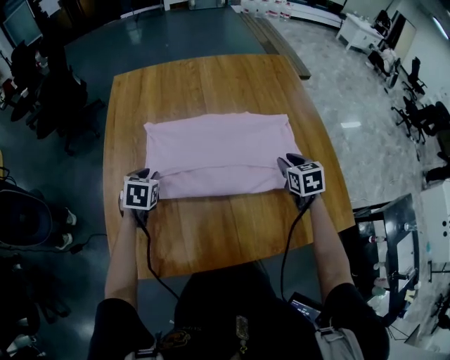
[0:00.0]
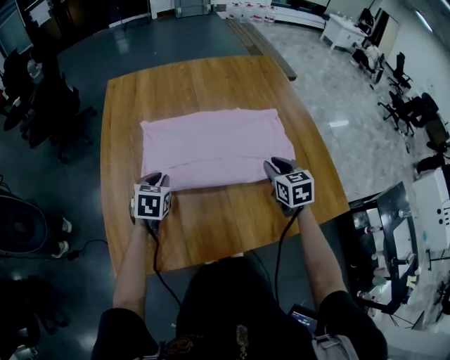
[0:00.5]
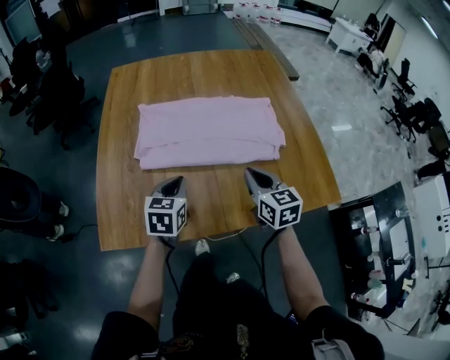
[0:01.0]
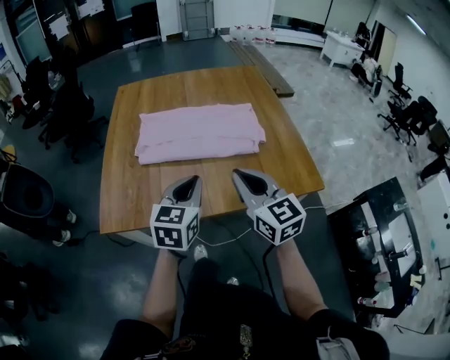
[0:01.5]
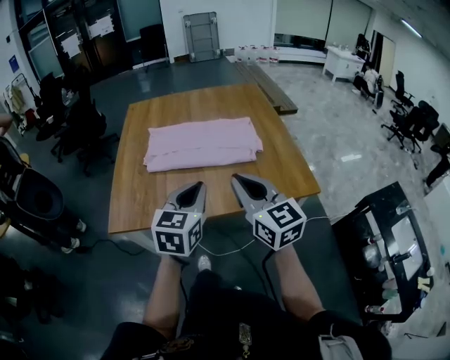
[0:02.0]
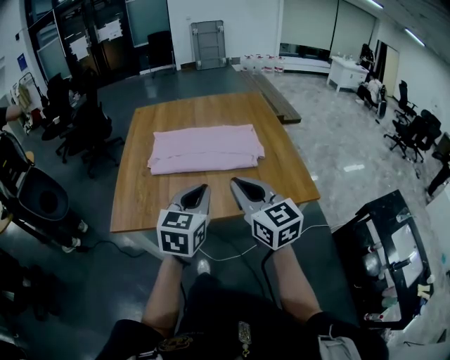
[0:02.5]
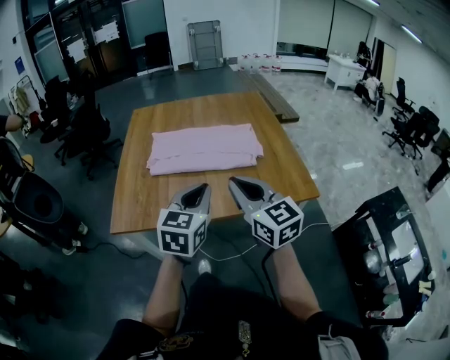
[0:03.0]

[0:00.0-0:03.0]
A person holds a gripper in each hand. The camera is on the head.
0:00.0 to 0:01.5: The right gripper goes roughly 40 cm backward and upward, points its fingers some 40 degrees further upward, and closes. Meanwhile the left gripper shifts approximately 40 cm backward, to the right and upward, tilts its fingers approximately 30 degrees upward, and closes up.
0:01.5 to 0:03.0: Both grippers travel together backward and upward, about 10 cm.

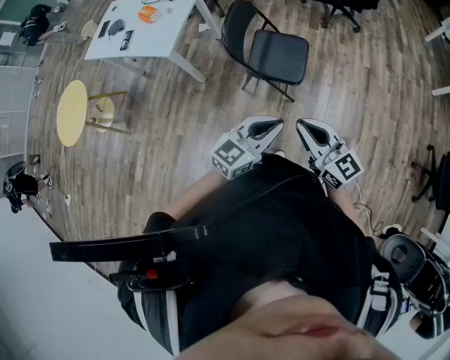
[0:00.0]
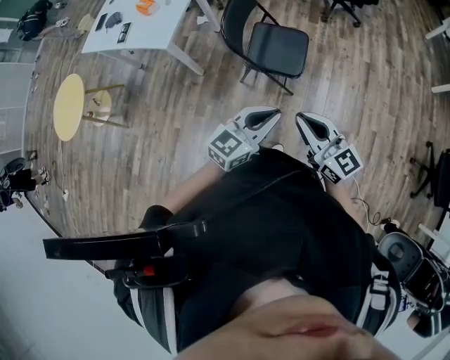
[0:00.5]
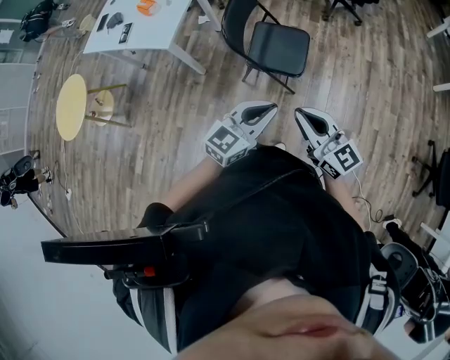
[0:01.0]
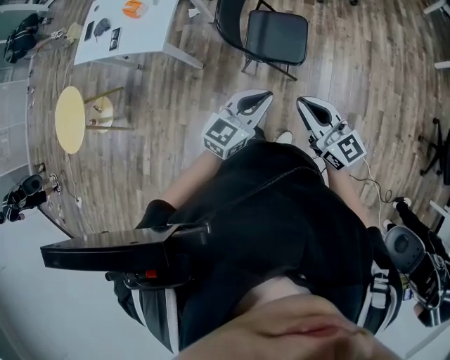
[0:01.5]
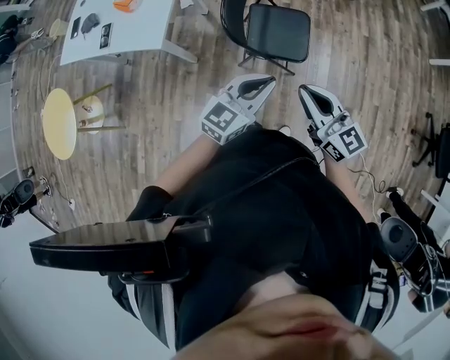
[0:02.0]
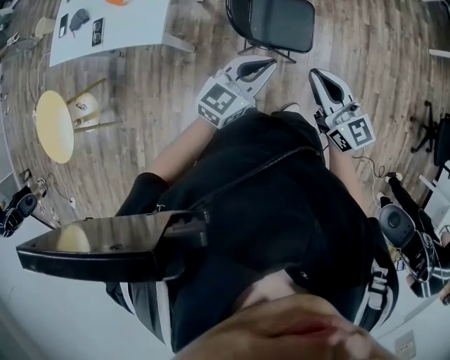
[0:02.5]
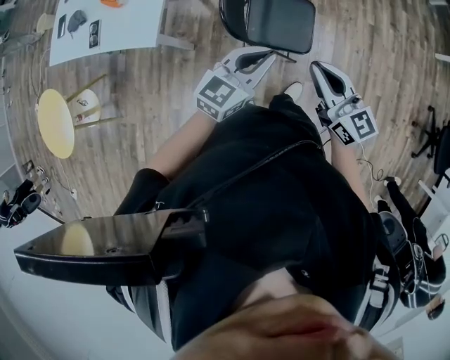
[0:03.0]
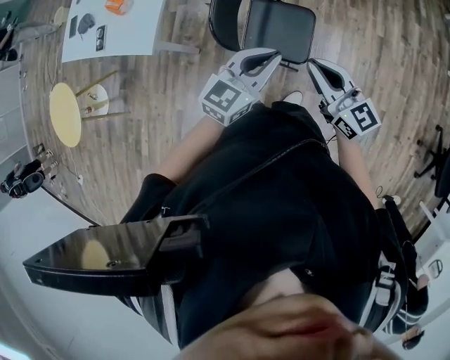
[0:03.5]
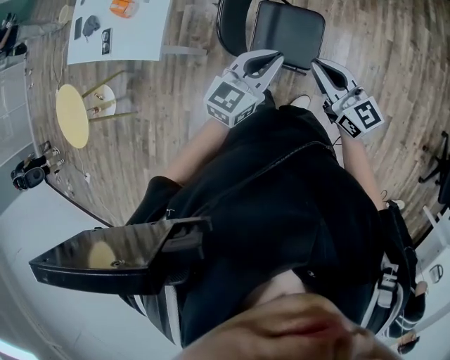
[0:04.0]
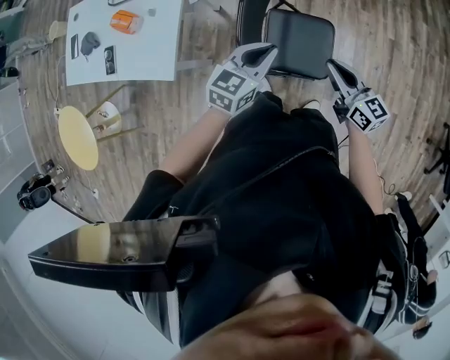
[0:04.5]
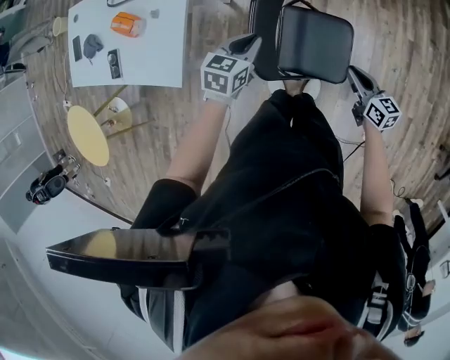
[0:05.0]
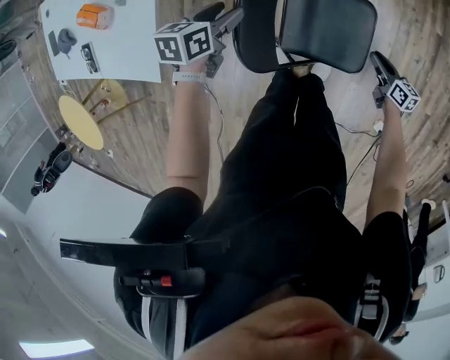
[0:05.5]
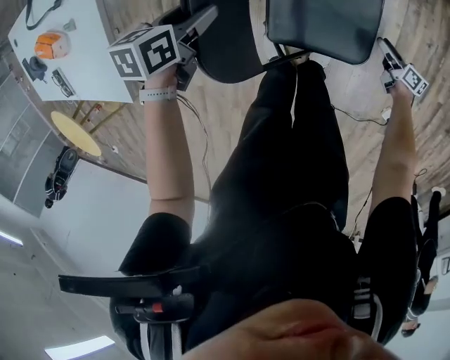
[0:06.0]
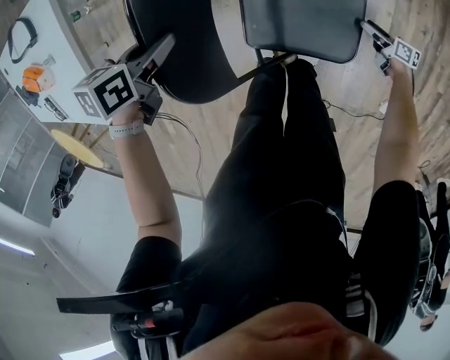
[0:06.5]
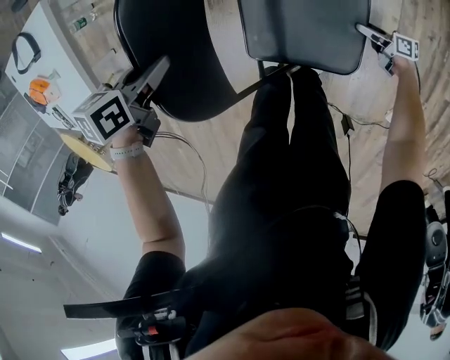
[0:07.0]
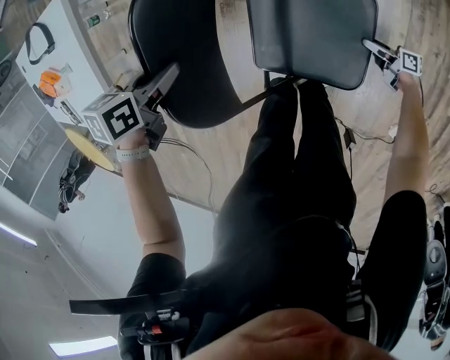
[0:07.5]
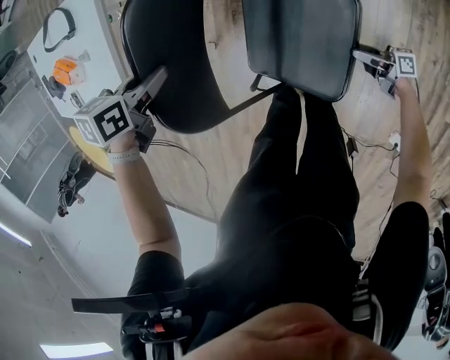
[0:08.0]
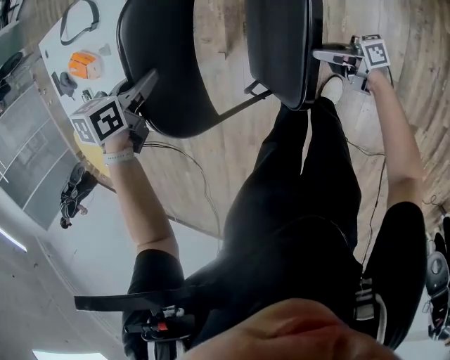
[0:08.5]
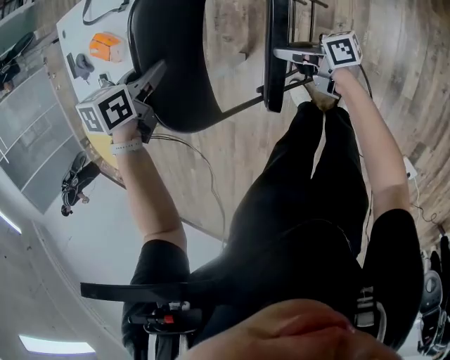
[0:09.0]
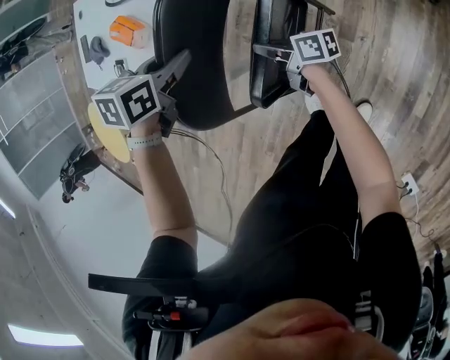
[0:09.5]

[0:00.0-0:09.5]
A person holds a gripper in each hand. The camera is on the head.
0:00.0 to 0:02.0: The grippers both shift forward and to the left by about 20 cm.
0:02.0 to 0:04.0: Both grippers travel together forward, approximately 20 cm.
0:04.0 to 0:05.5: The right gripper shifts some 50 cm downward, and turns by approximately 40 degrees. Meanwhile the left gripper is displaced downward, forward and to the left by some 40 cm, tips its fingers downward by about 30 degrees, and opens.
0:05.5 to 0:07.5: The right gripper shifts about 25 cm downward, rotates roughly 40 degrees, and opens; the left gripper heads downward, covering roughly 10 cm, rotates about 20 degrees, and closes.
0:07.5 to 0:09.5: The left gripper moves about 25 cm. Meanwhile the right gripper changes place by approximately 60 cm, rotates some 30 degrees, and closes its fingers.

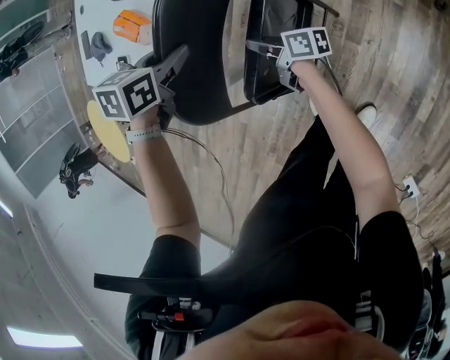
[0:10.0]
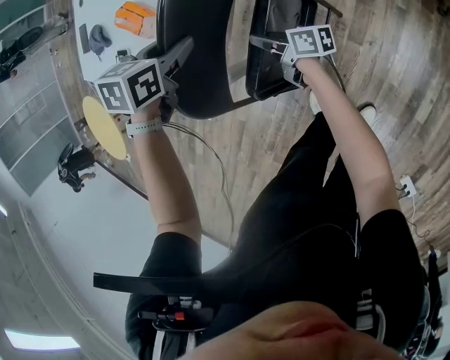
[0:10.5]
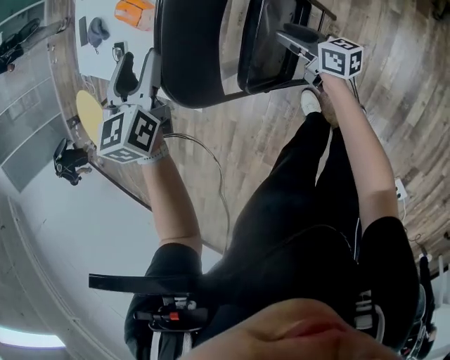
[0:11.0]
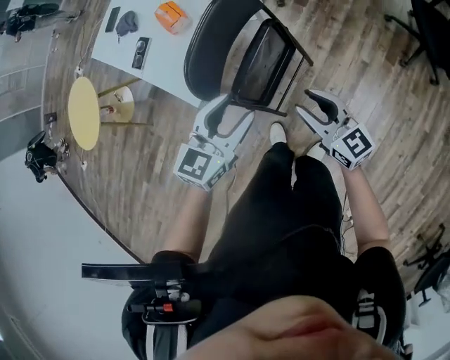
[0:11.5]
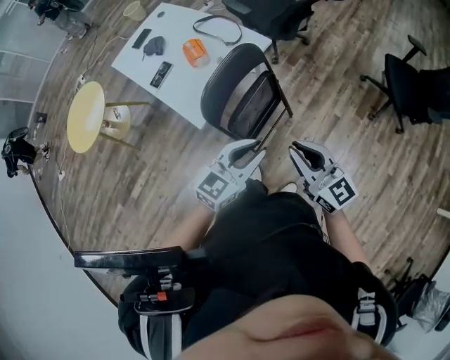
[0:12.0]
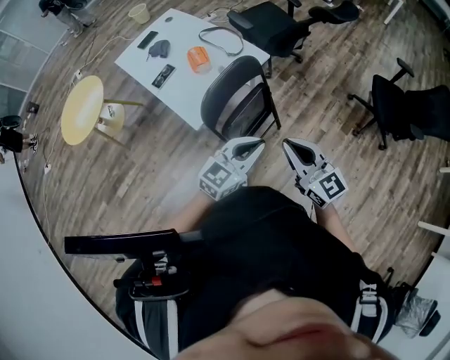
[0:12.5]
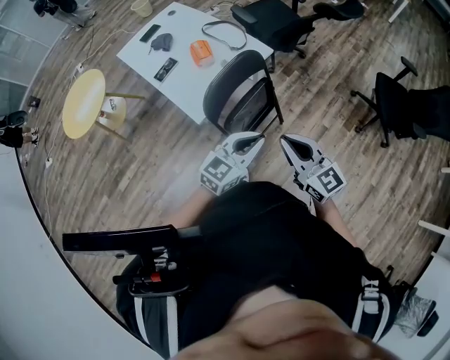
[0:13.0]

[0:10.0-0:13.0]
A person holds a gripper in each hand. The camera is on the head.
0:10.0 to 0:11.5: The left gripper is displaced backward and upward by about 30 cm, points its fingers approximately 40 degrees further upward, and opens. The right gripper heads upward, backward and to the right, covering about 35 cm, rotates around the line of its fingers by roughly 60 degrees, counterclockwise from behind, and opens.
0:11.5 to 0:13.0: The left gripper is displaced upward and backward by about 15 cm, and closes, while the right gripper goes some 25 cm upward and backward, and closes its fingers.

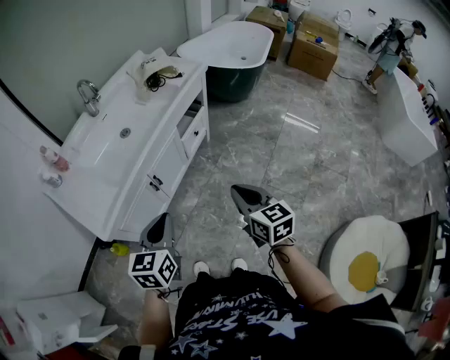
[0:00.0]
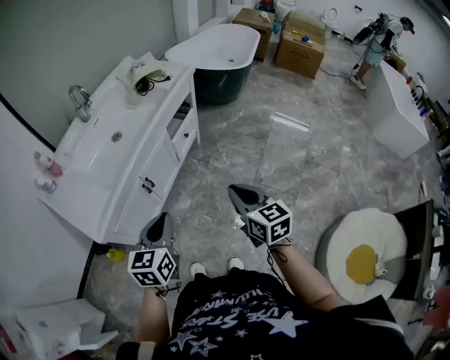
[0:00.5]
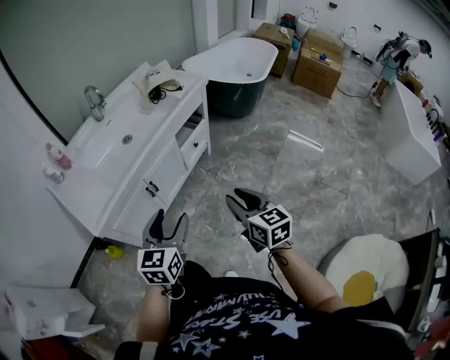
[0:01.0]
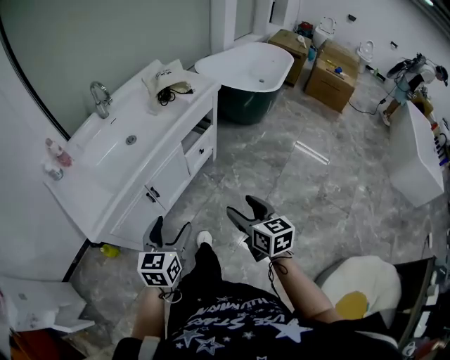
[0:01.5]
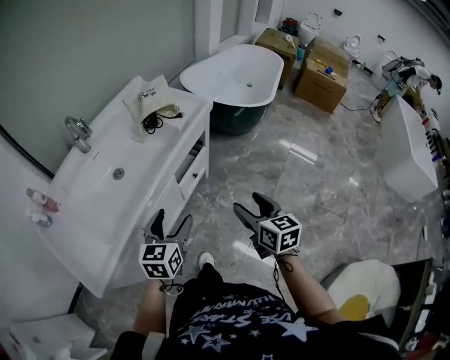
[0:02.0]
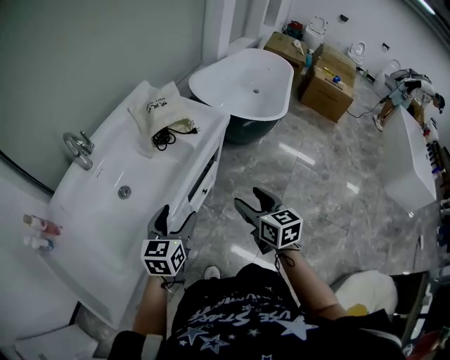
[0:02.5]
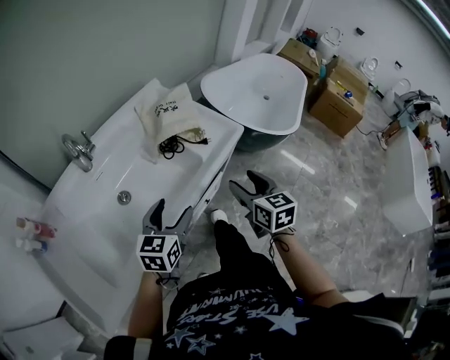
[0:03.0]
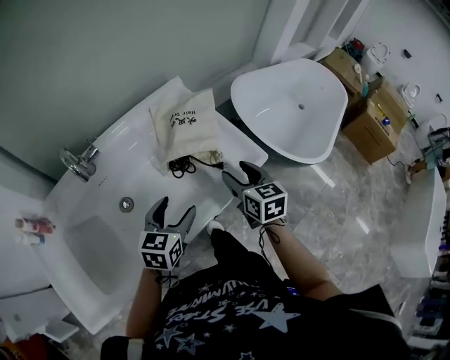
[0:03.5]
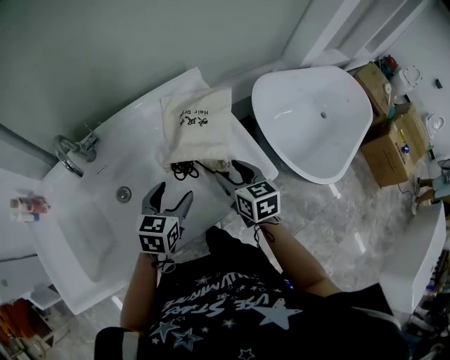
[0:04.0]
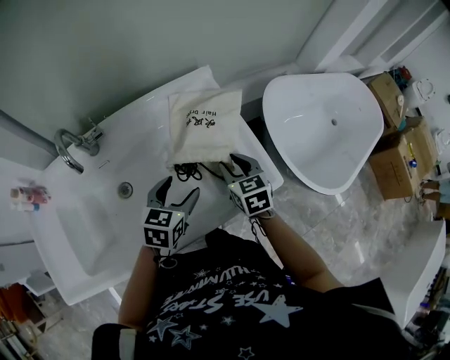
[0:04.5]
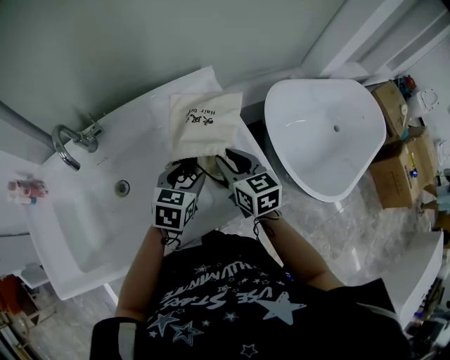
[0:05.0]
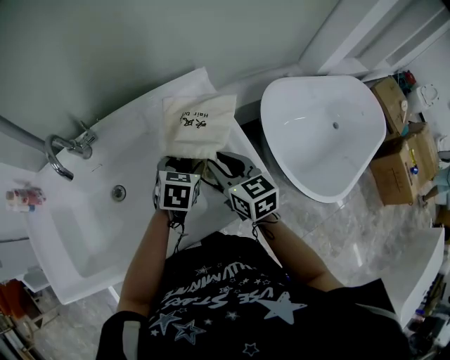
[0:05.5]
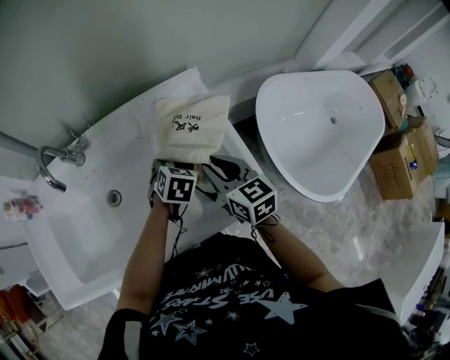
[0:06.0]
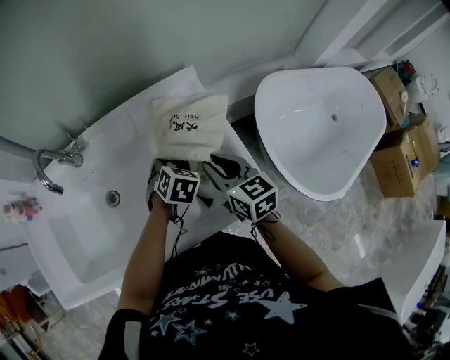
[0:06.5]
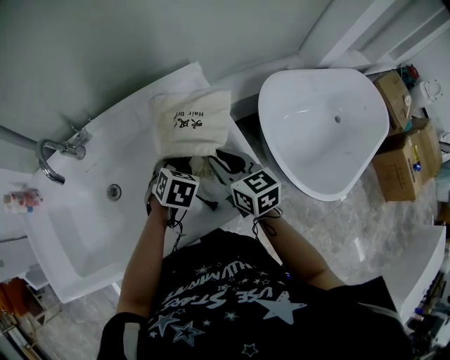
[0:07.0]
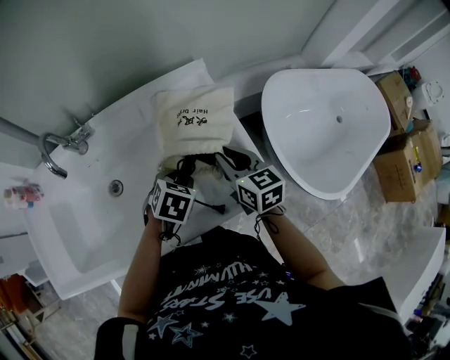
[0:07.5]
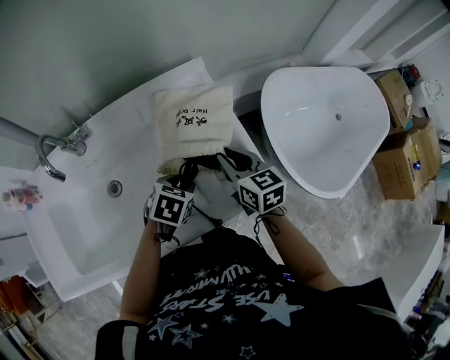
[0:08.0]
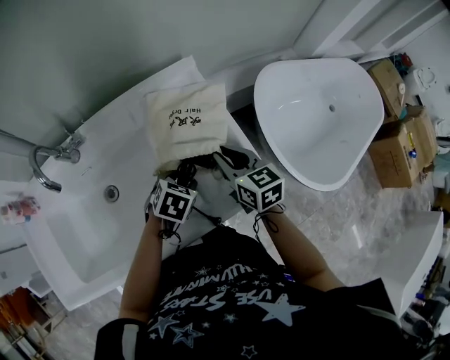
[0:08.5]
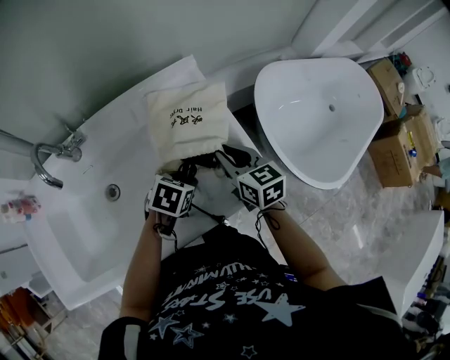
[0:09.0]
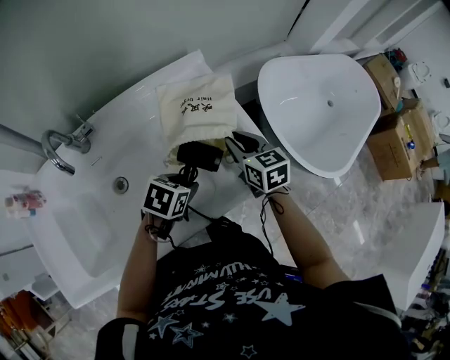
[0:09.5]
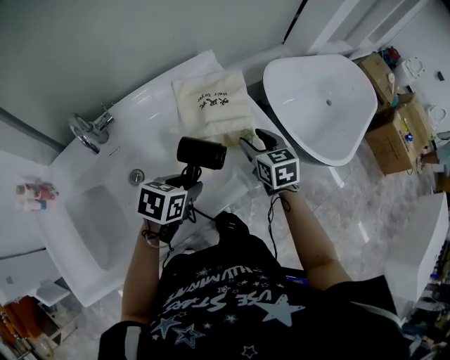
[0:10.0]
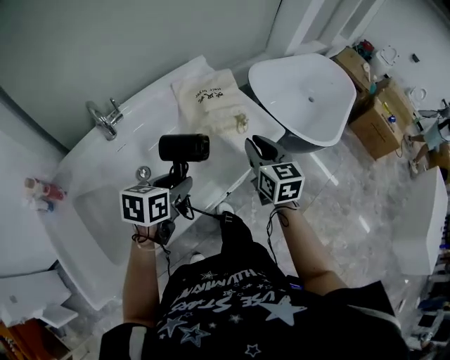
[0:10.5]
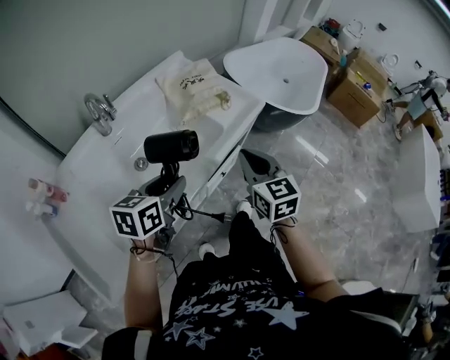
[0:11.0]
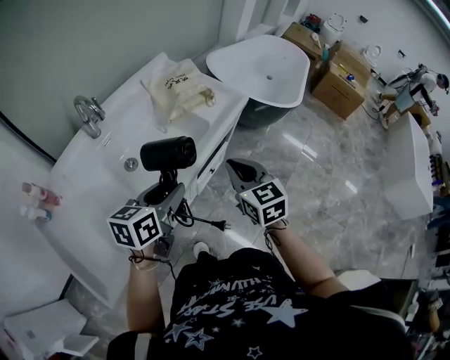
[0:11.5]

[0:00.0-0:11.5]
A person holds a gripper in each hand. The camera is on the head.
0:00.0 to 0:02.0: Both grippers move forward, some 25 cm. The right gripper opens up; the left gripper opens.
0:02.0 to 0:04.0: The pair of grippers is taken roughly 50 cm. The right gripper changes its angle by about 30 degrees. The left gripper swivels roughly 20 degrees.
0:04.0 to 0:06.0: The right gripper heads forward, covering roughly 5 cm, and closes; the left gripper heads forward, downward and to the right, covering roughly 15 cm, and changes its angle by about 30 degrees.
0:06.0 to 0:07.5: The left gripper shifts roughly 10 cm backward.
0:07.5 to 0:09.5: The left gripper heads backward, covering approximately 5 cm.
0:09.5 to 0:11.5: The right gripper travels backward by some 40 cm, swivels roughly 30 degrees, and opens, then closes again; the left gripper heads backward and upward, covering roughly 30 cm, and points its fingers about 40 degrees further upward.
